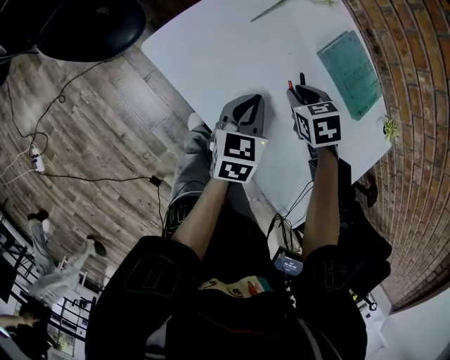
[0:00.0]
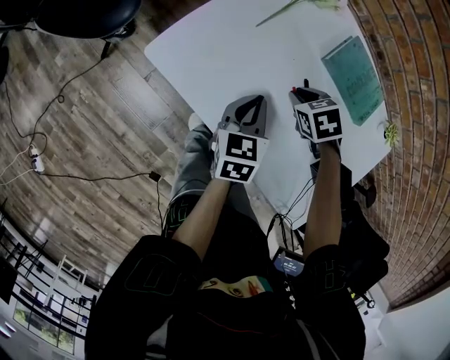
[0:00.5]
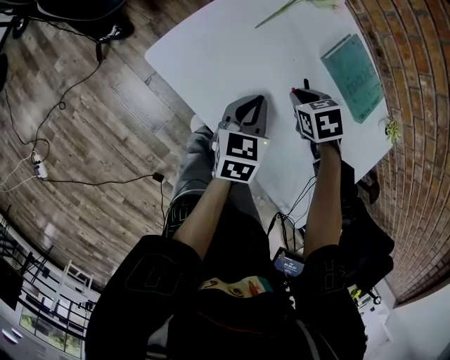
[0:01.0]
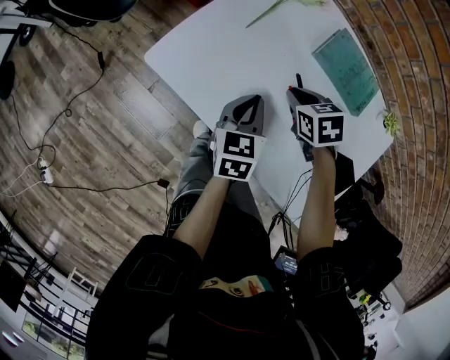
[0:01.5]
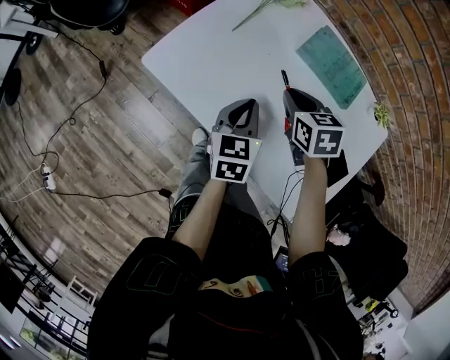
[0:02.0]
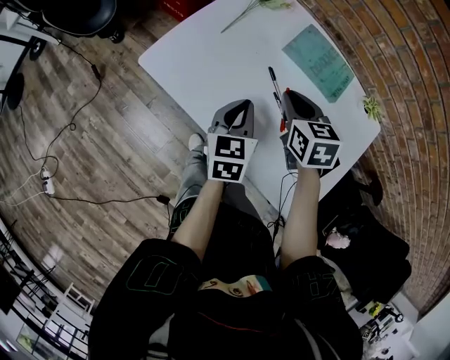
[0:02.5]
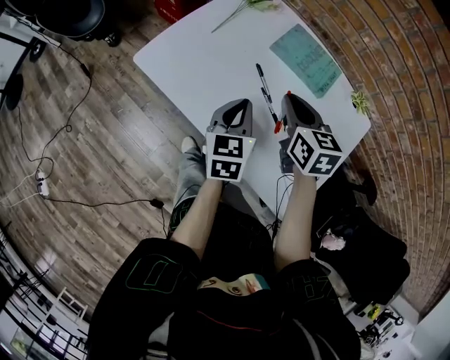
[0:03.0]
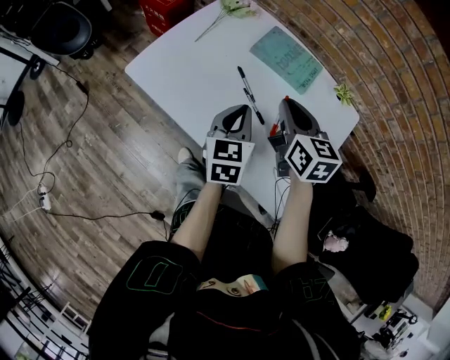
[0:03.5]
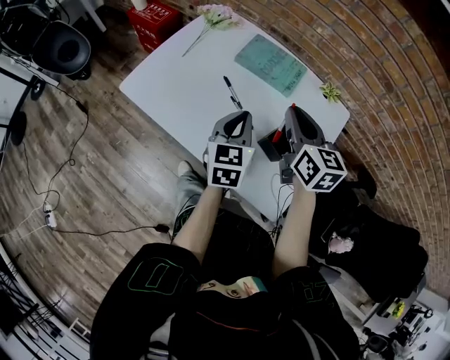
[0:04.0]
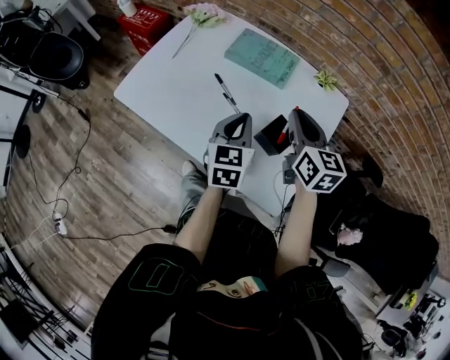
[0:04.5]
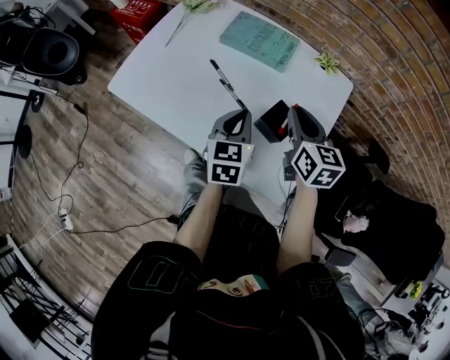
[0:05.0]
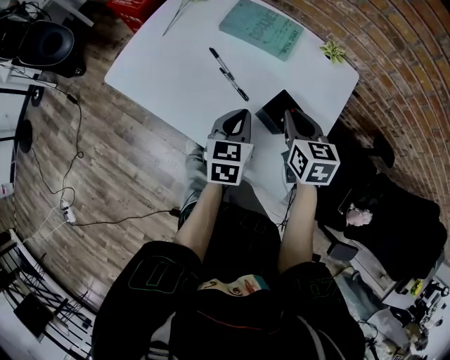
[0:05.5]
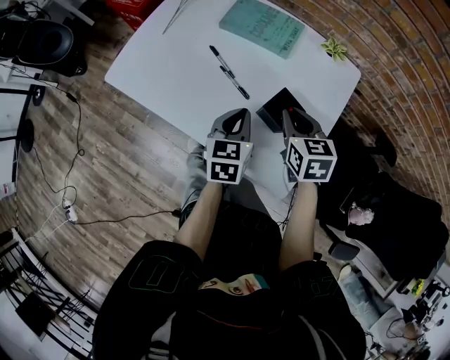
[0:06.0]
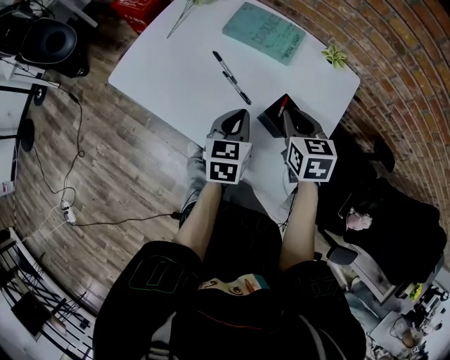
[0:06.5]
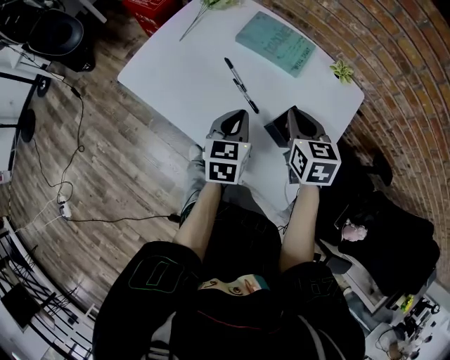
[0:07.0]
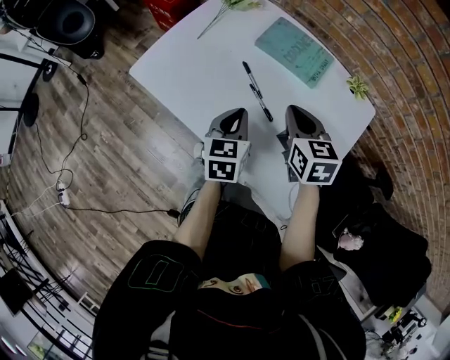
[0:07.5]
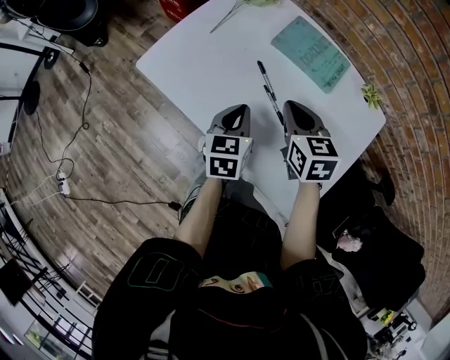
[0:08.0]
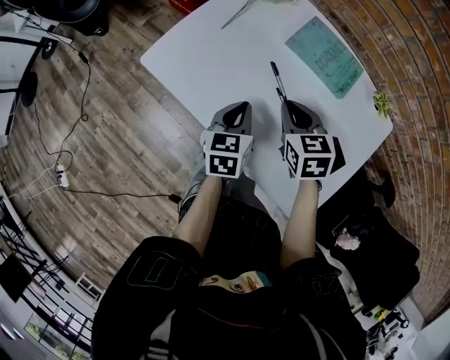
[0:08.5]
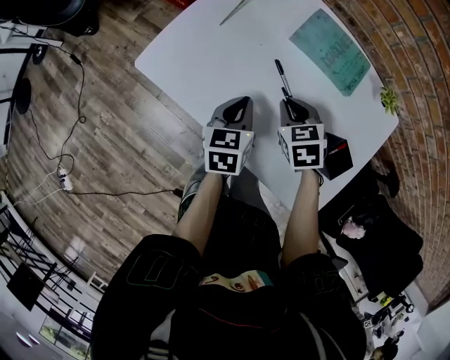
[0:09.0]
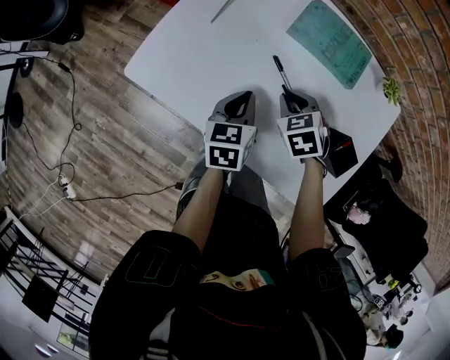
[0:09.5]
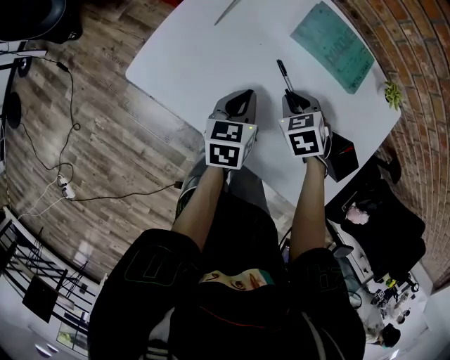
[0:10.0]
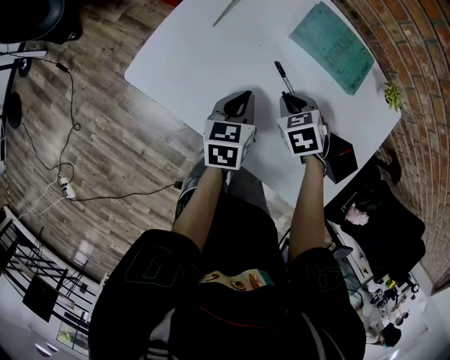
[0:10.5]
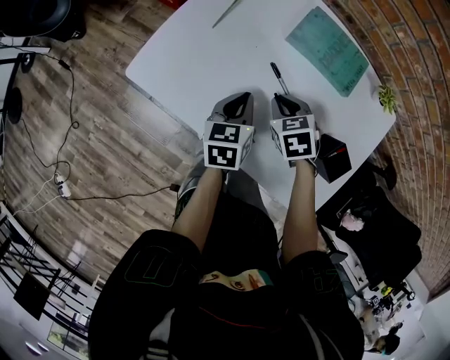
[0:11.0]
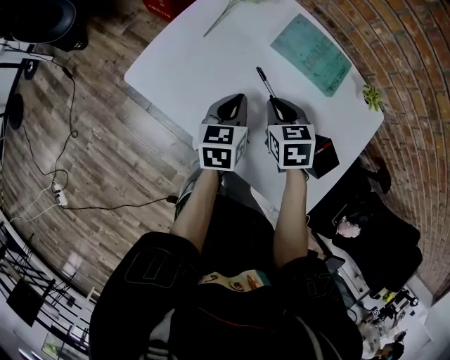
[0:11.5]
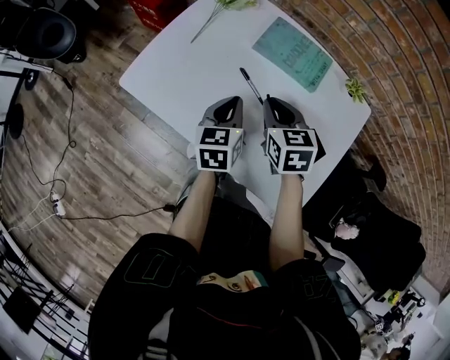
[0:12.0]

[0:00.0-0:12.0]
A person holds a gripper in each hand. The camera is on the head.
0:00.0 to 0:02.0: The right gripper moves upward, some 10 cm, and turns by roughly 30 degrees.
0:02.0 to 0:04.0: Both grippers travel together to the right, upward and backward, approximately 20 cm. The right gripper points its fingers about 30 degrees further upward.
0:04.0 to 0:06.0: The left gripper moves downward, roughly 10 cm; the right gripper travels downward, backward and to the right by approximately 15 cm, and turns by about 20 degrees.
0:06.0 to 0:08.0: Both grippers travel together to the left and forward, about 15 cm.
0:08.0 to 0:10.0: The left gripper is displaced forward and downward by some 10 cm; the right gripper is displaced downward by roughly 15 cm, and rotates about 30 degrees.
0:10.0 to 0:12.0: The right gripper travels upward by some 15 cm, and turns by roughly 30 degrees. Meanwhile the left gripper moves upward and to the right, some 10 cm.

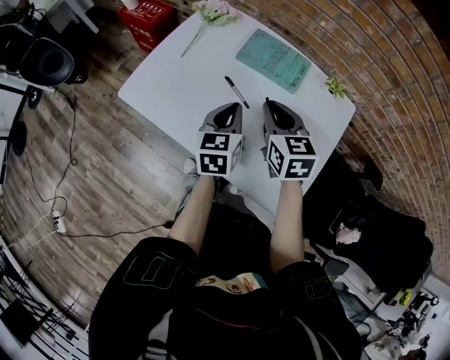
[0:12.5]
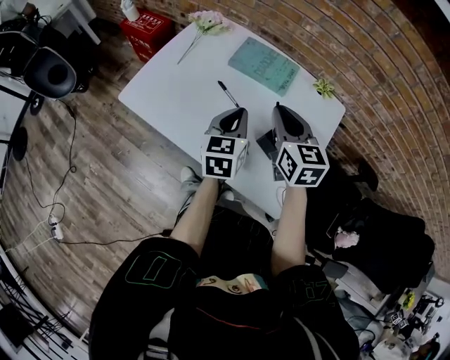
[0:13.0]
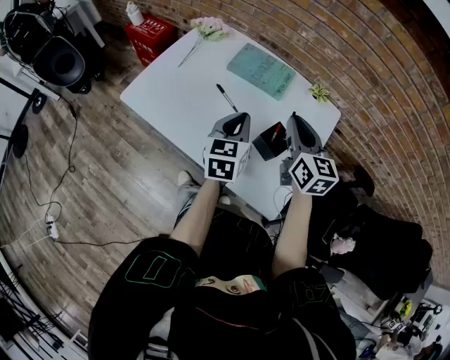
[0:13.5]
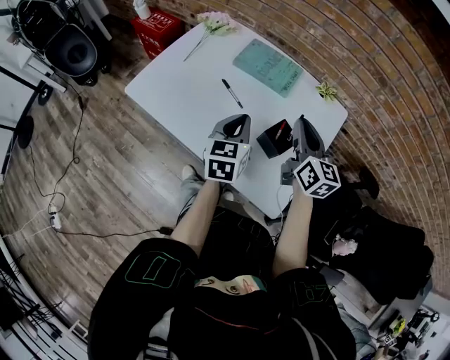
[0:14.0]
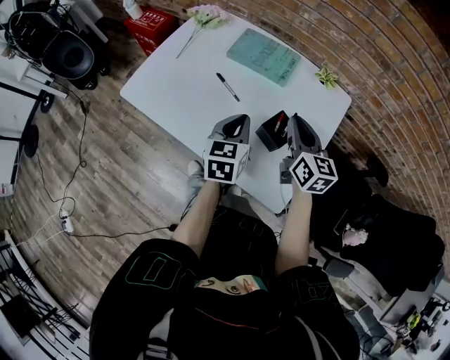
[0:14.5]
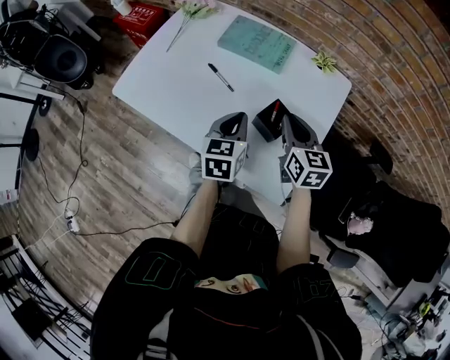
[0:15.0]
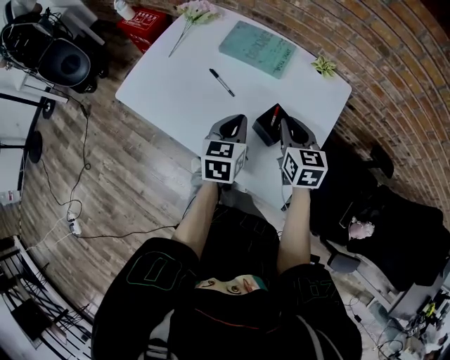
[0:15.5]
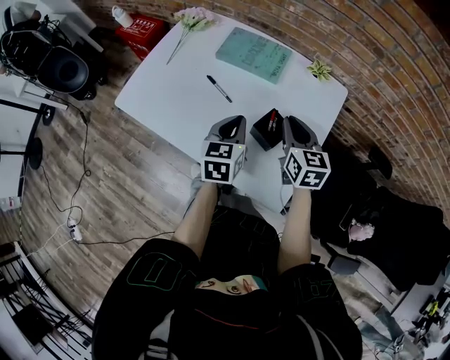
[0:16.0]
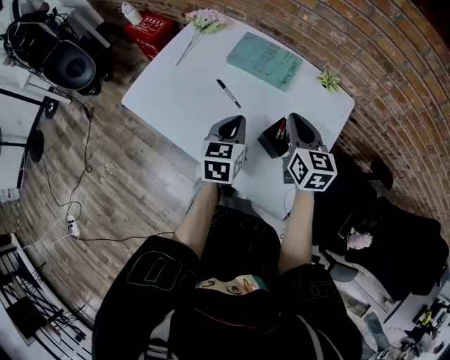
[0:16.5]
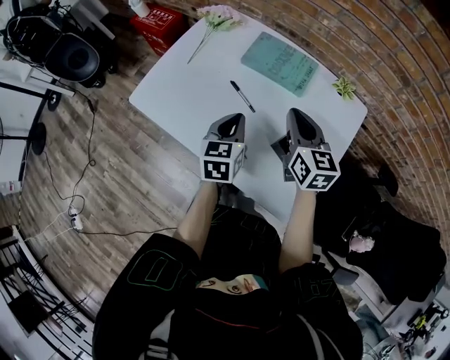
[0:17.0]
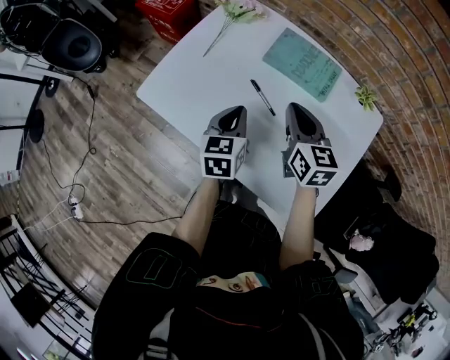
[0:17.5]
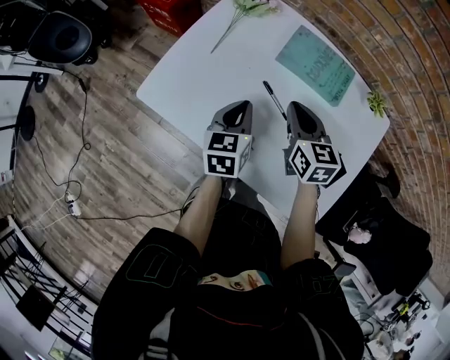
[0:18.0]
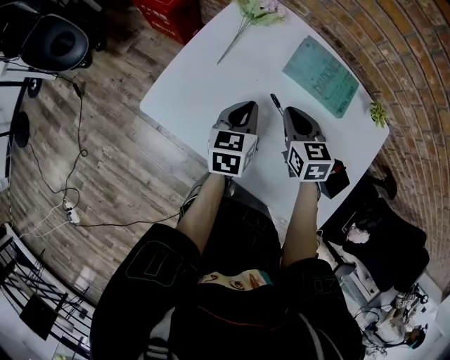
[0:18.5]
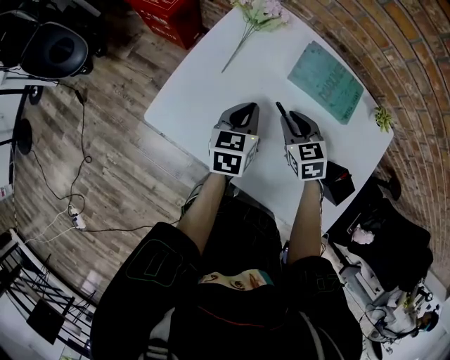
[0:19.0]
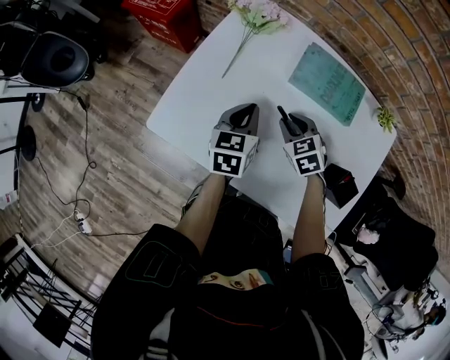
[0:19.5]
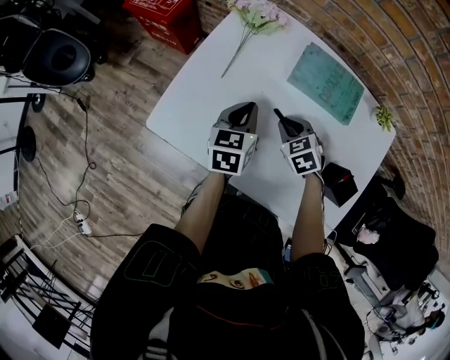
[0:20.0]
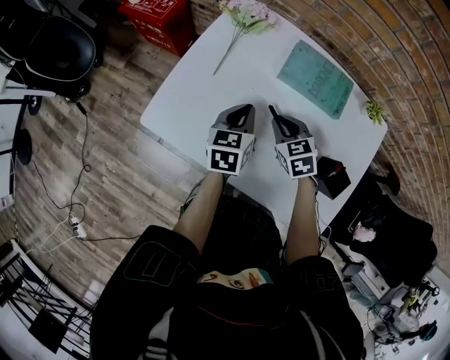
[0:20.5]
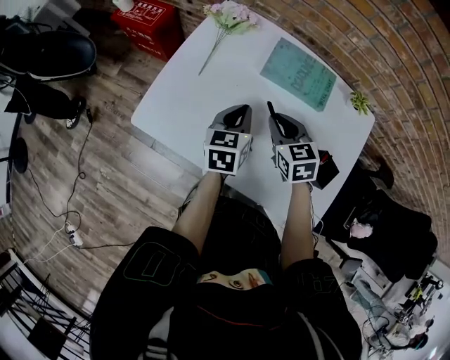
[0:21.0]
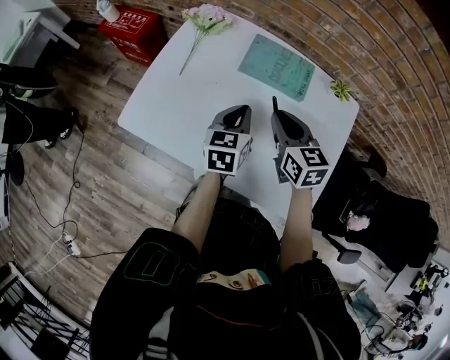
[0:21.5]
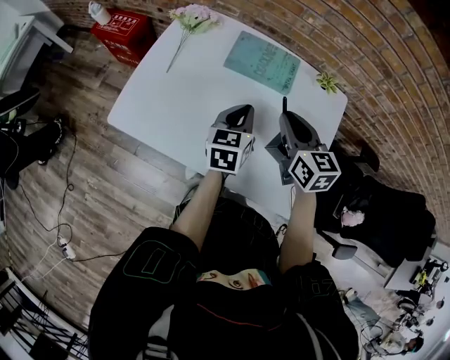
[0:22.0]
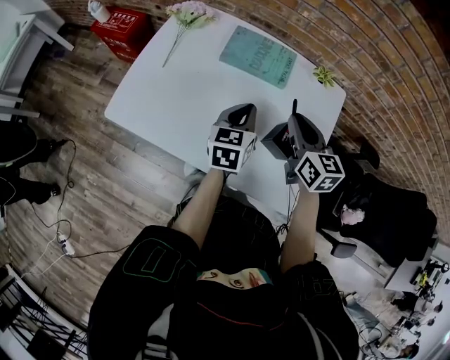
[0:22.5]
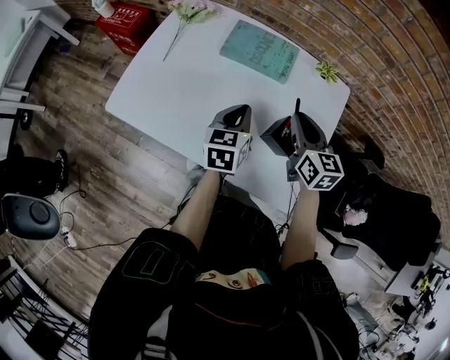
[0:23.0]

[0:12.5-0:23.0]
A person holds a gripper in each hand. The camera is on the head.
0:12.5 to 0:14.5: The left gripper is displaced to the right and backward by some 10 cm. The right gripper is displaced to the right by some 15 cm, and rotates roughly 20 degrees.
0:14.5 to 0:16.5: The grippers make only small movements.
0:16.5 to 0:19.0: The left gripper heads to the left and forward, covering about 25 cm. Meanwhile the right gripper goes approximately 30 cm to the left, downward and forward, and turns by approximately 30 degrees.
0:19.0 to 0:21.0: The right gripper moves upward, roughly 5 cm. Meanwhile the left gripper ends up some 5 cm from where it was.
0:21.0 to 0:23.0: The left gripper goes roughly 15 cm to the right and backward. The right gripper is displaced to the right by roughly 20 cm, and changes its angle by approximately 20 degrees.

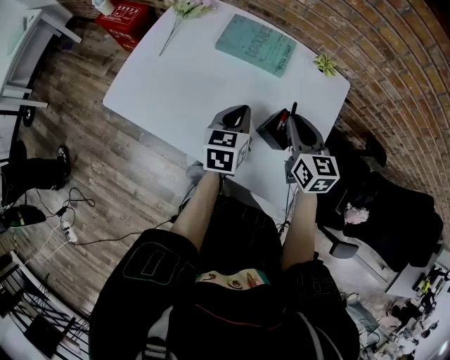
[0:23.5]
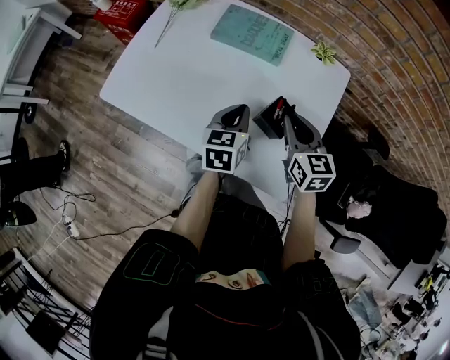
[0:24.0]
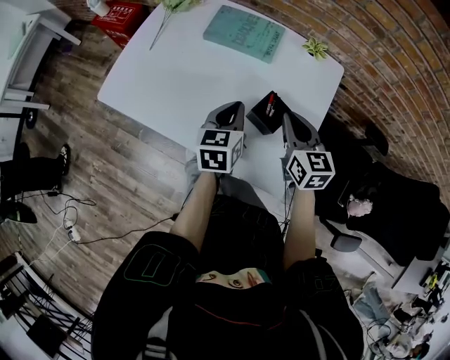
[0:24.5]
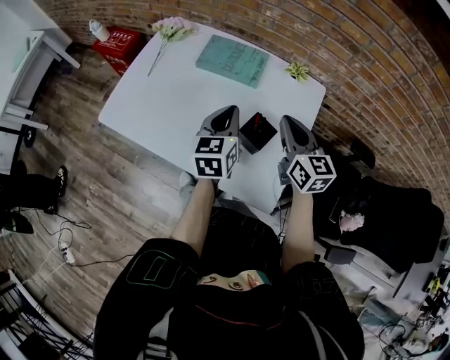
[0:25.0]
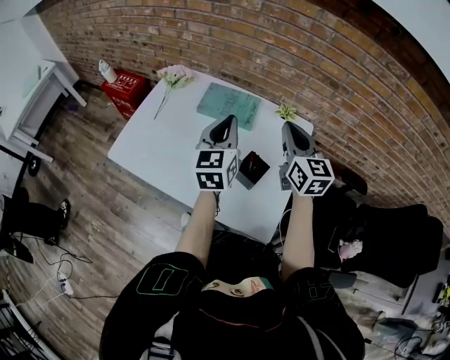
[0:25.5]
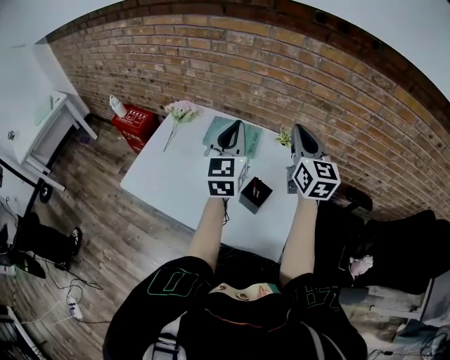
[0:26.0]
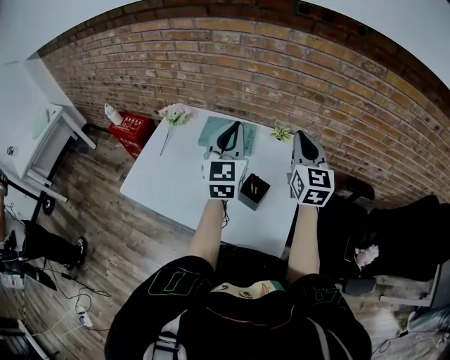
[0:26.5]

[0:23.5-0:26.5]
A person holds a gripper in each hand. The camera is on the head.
0:23.5 to 0:25.0: Both grippers move upward, roughly 5 cm.
0:25.0 to 0:26.5: The right gripper shifts approximately 15 cm upward and to the right, and swivels some 30 degrees. The left gripper is displaced upward by roughly 20 cm, and turns by approximately 30 degrees.

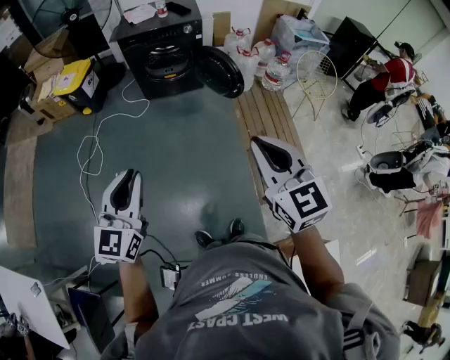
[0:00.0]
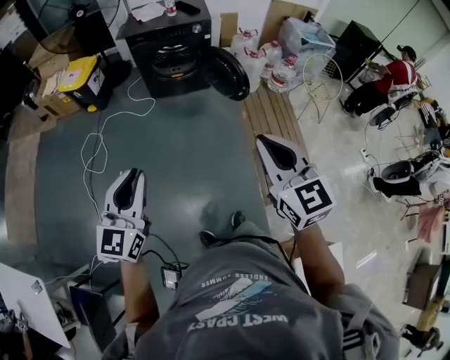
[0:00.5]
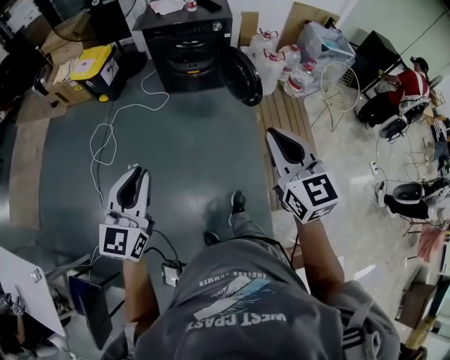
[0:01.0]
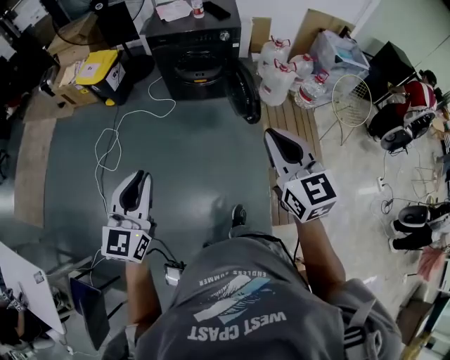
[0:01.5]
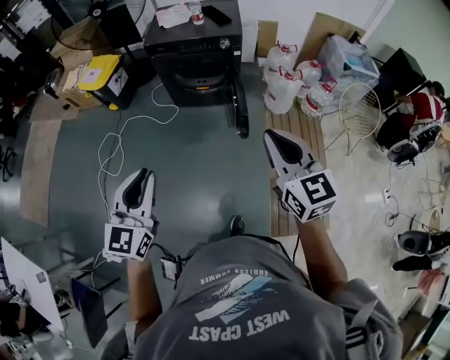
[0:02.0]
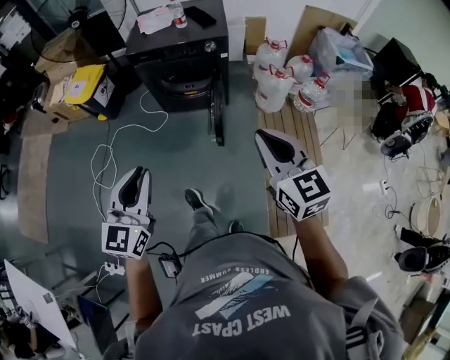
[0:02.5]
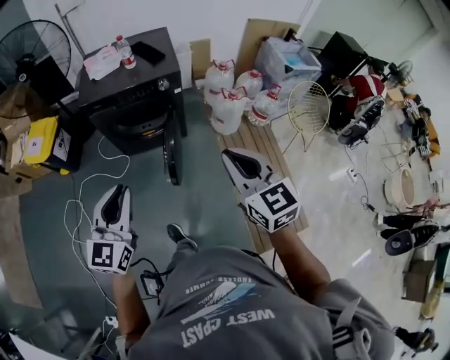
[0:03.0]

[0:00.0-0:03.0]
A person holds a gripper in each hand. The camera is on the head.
0:00.0 to 0:01.5: The right gripper heads forward, covering approximately 20 cm. The left gripper shifts approximately 15 cm forward.
0:01.5 to 0:03.0: The two grippers go about 25 cm forward.
